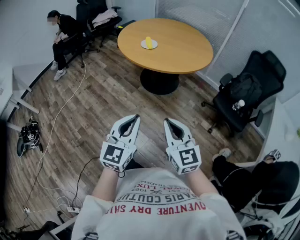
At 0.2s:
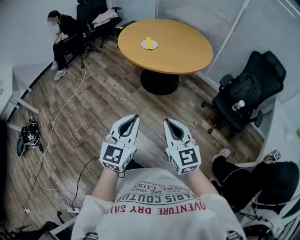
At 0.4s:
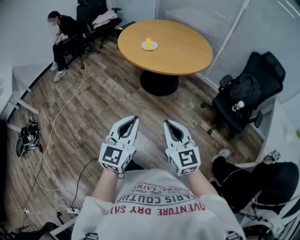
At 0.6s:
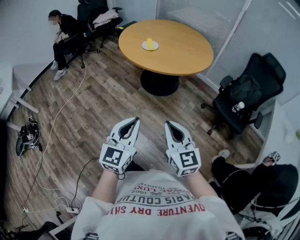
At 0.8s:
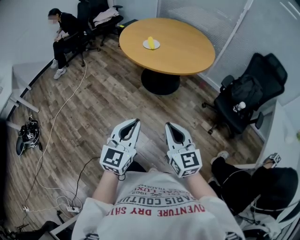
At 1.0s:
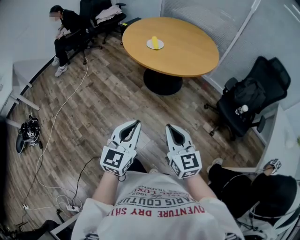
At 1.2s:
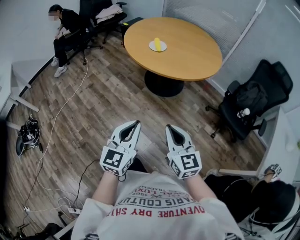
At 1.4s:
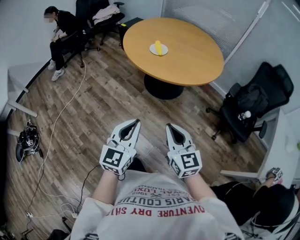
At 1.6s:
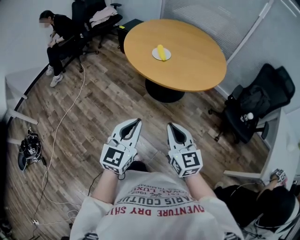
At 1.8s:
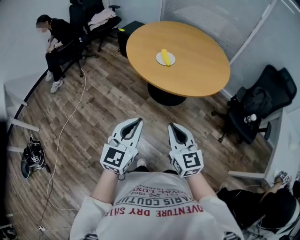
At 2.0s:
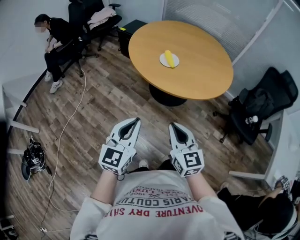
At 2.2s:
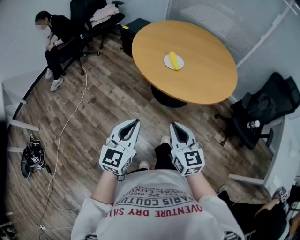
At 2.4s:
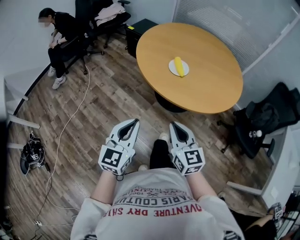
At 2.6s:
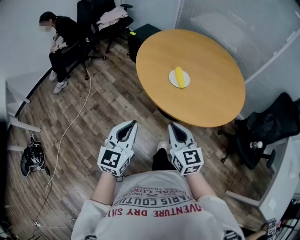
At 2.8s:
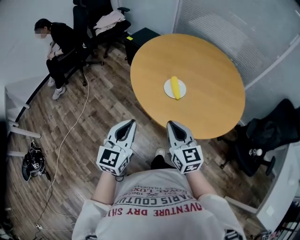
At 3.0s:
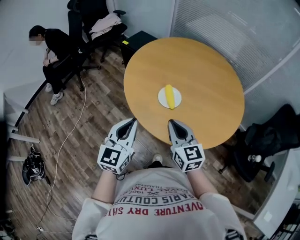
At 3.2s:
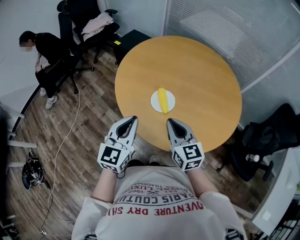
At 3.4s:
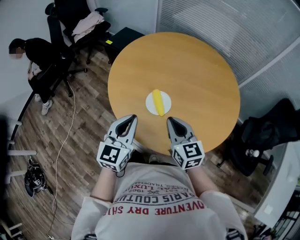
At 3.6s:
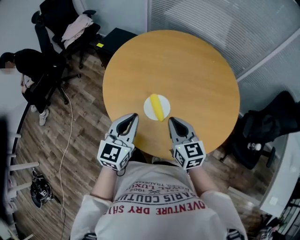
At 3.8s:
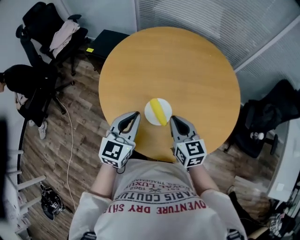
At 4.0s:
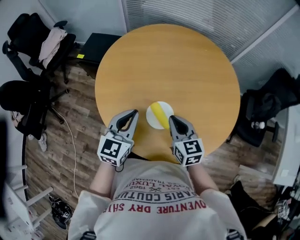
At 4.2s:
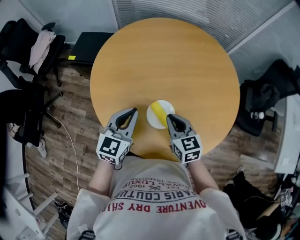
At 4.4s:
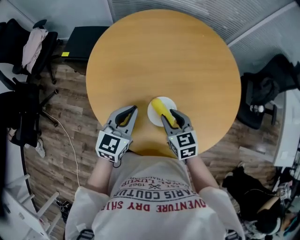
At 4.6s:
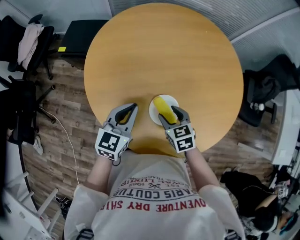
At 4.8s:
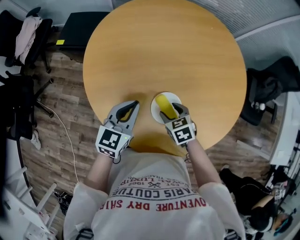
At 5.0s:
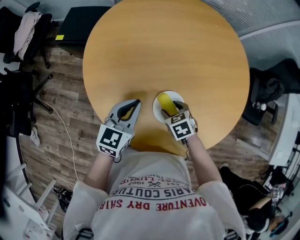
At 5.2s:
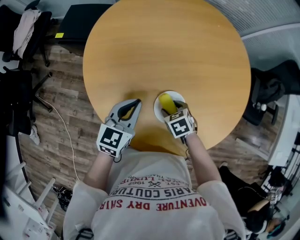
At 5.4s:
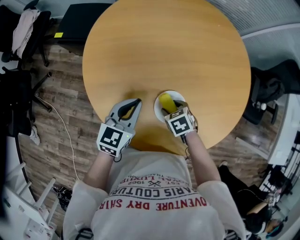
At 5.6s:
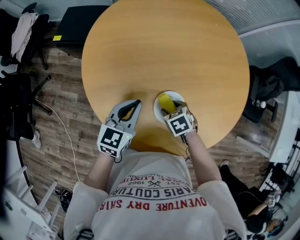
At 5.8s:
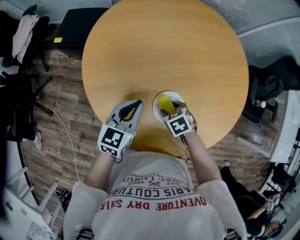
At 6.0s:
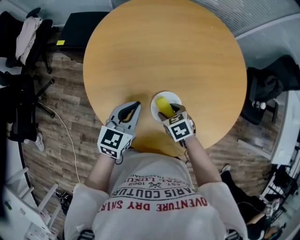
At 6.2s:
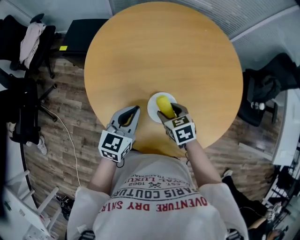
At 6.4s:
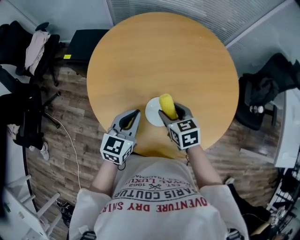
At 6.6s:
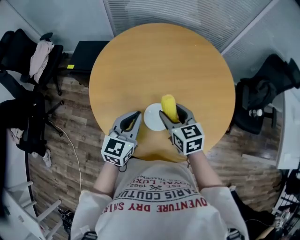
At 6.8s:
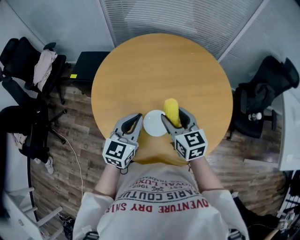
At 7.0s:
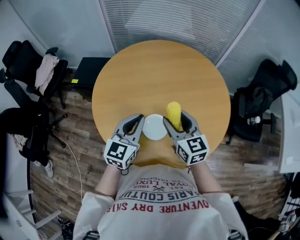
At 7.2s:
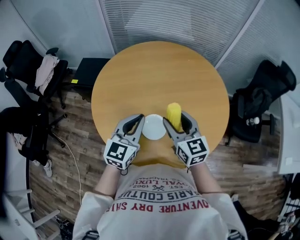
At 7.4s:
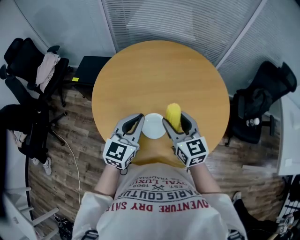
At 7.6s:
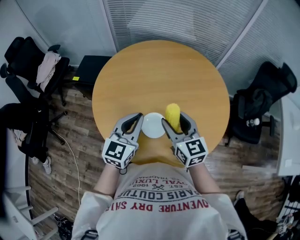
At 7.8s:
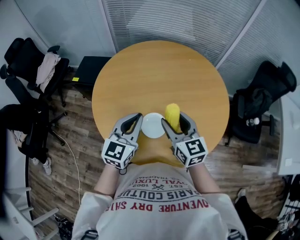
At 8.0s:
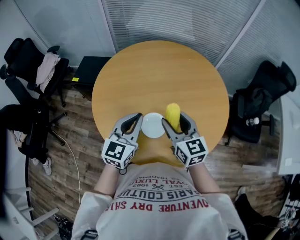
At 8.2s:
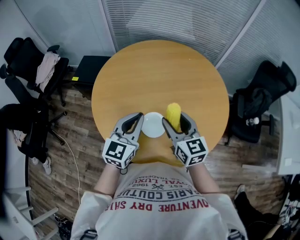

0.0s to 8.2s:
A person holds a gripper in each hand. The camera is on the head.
0.0s to 1.6s: Both grippers travel together forward and to the left, roughly 20 cm.
1.6s to 3.2s: The pair of grippers is taken forward, roughly 40 cm.
3.2s to 5.0s: The left gripper ends up roughly 30 cm from where it was, and turns by some 40 degrees, while the right gripper heads downward, covering roughly 25 cm, angles its fingers downward, by some 50 degrees, and opens up.
5.0s to 6.6s: The right gripper heads upward, covering roughly 20 cm, and tilts its fingers about 40 degrees upward; the left gripper shifts some 10 cm upward.
6.6s to 8.2s: Both grippers travel together upward, approximately 5 cm.

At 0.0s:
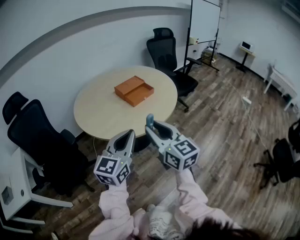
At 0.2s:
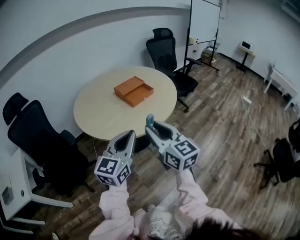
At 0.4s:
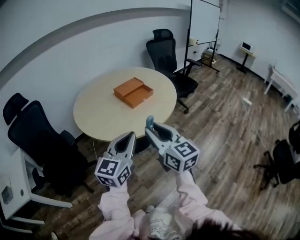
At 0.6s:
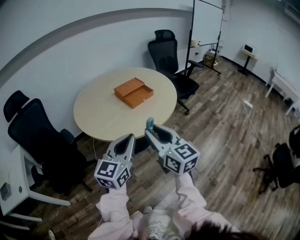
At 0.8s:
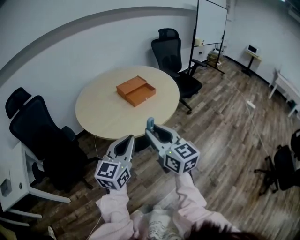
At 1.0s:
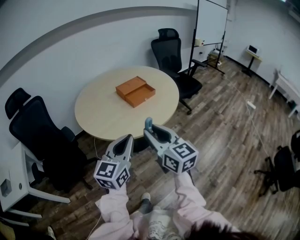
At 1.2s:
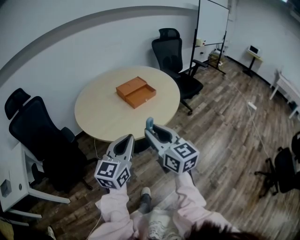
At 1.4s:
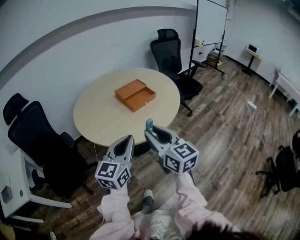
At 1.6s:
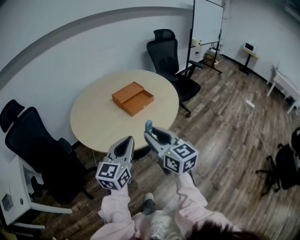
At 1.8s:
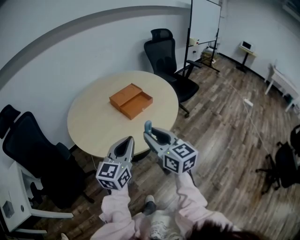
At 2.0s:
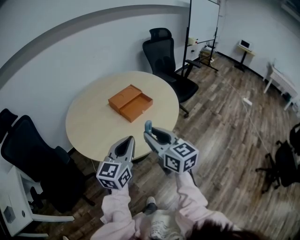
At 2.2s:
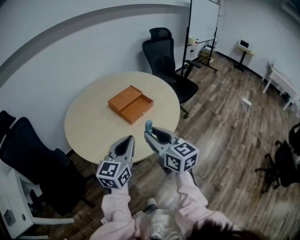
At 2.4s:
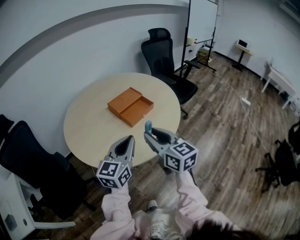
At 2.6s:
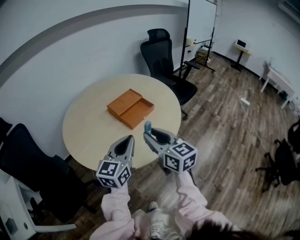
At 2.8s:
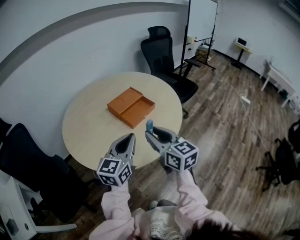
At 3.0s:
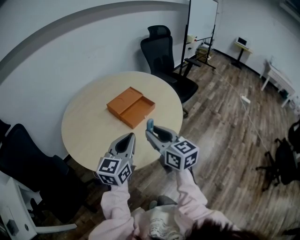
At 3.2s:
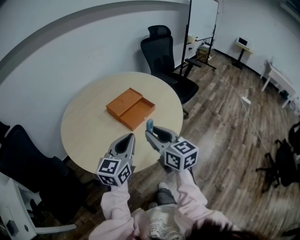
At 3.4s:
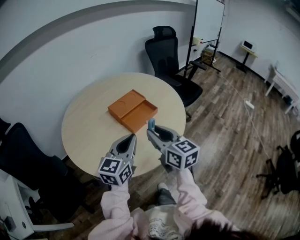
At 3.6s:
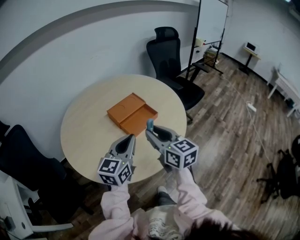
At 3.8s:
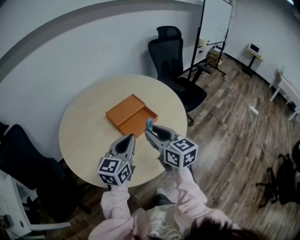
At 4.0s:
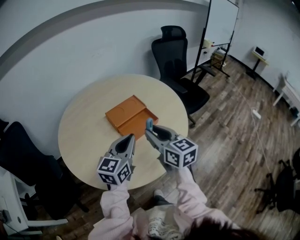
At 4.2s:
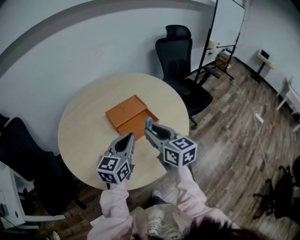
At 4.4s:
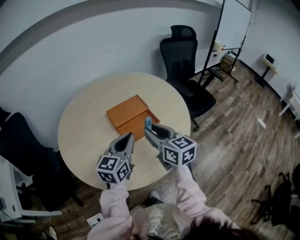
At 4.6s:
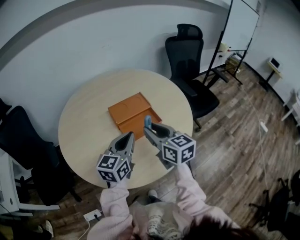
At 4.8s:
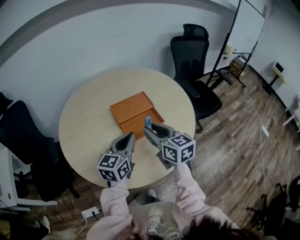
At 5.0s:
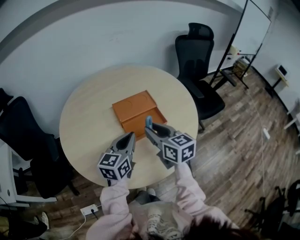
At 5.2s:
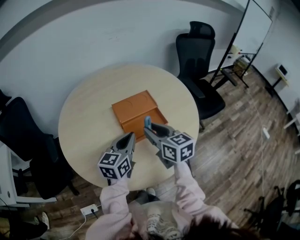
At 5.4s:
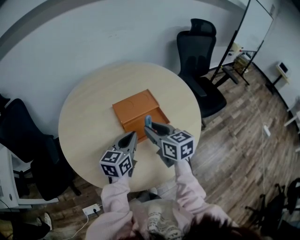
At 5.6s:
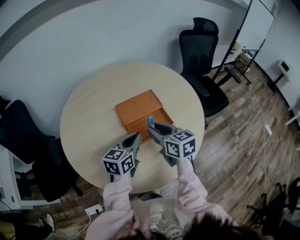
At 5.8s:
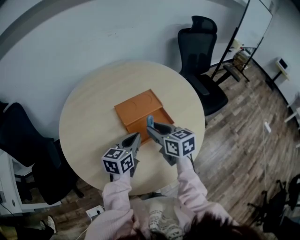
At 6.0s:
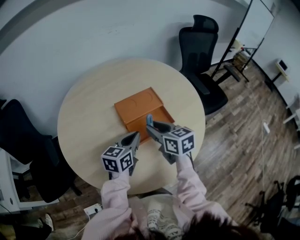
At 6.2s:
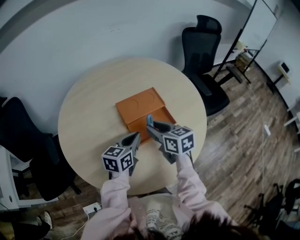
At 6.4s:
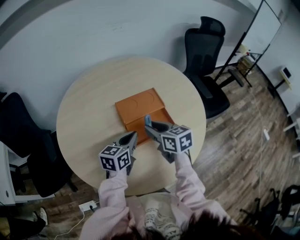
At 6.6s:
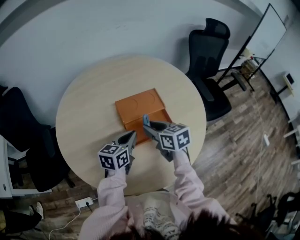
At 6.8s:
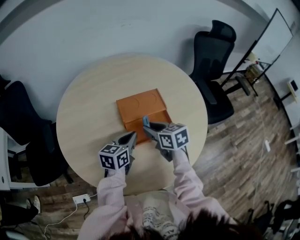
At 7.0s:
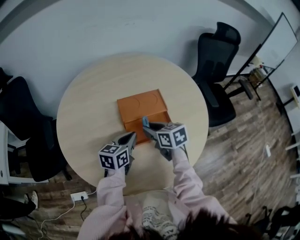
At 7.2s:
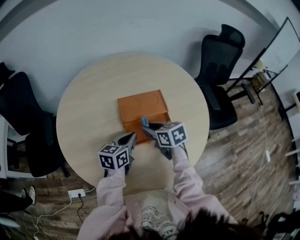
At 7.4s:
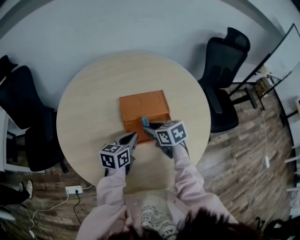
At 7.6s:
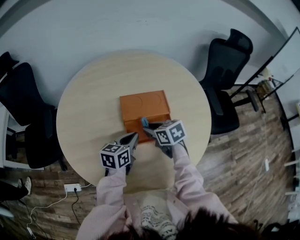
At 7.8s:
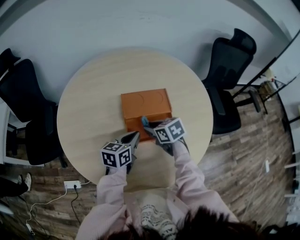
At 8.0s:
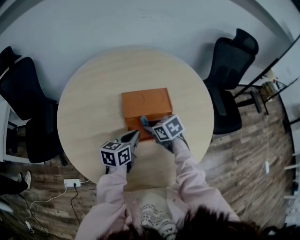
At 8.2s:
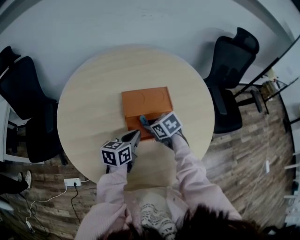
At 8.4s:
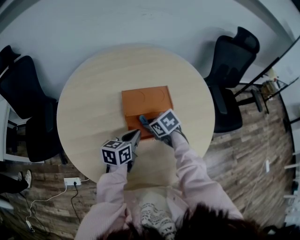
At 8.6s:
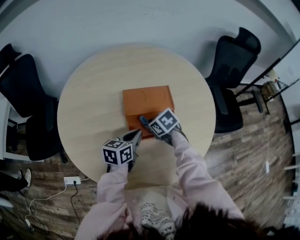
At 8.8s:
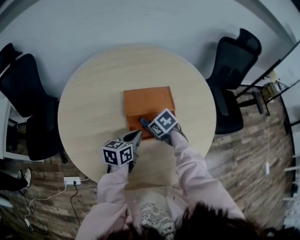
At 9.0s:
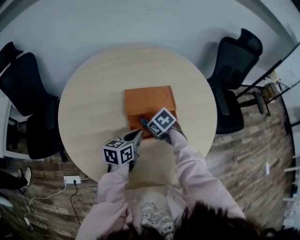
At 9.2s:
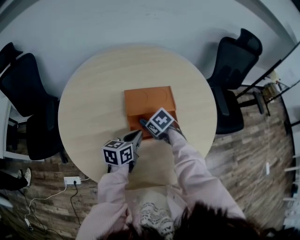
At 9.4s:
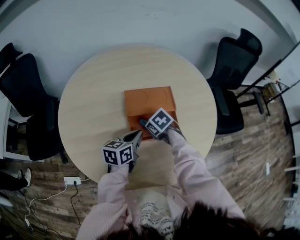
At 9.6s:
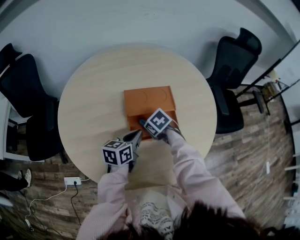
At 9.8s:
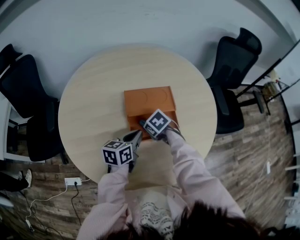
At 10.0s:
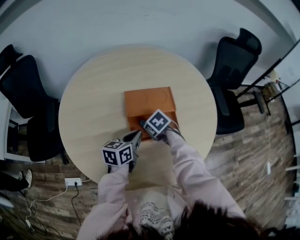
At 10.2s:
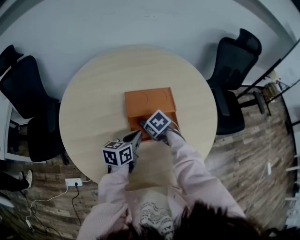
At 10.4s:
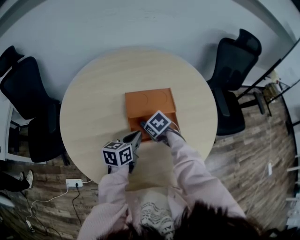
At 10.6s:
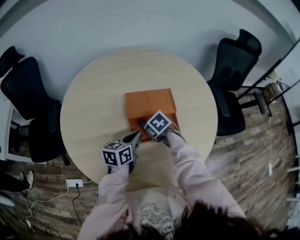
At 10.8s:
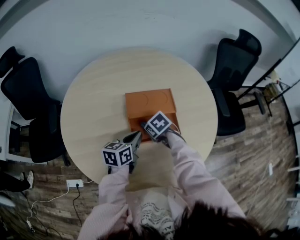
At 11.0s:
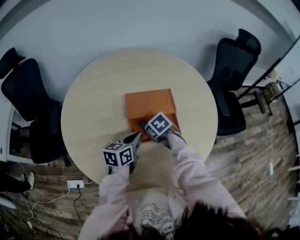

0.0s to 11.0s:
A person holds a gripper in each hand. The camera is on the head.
0.0s to 1.6s: Both grippers travel together forward, some 10 cm.
1.6s to 3.2s: The two grippers go approximately 15 cm forward.
3.2s to 4.8s: The grippers both shift forward by roughly 15 cm. The right gripper turns by about 20 degrees.
4.8s to 6.2s: The left gripper is displaced downward and forward by about 10 cm; the right gripper moves forward and downward, some 10 cm.
6.2s to 7.8s: The left gripper shifts some 5 cm downward. Meanwhile the right gripper heads downward, covering approximately 10 cm, and swivels roughly 30 degrees.
7.8s to 9.4s: The right gripper is displaced downward by some 5 cm, and swivels about 30 degrees.
9.4s to 11.0s: The grippers make only small movements.

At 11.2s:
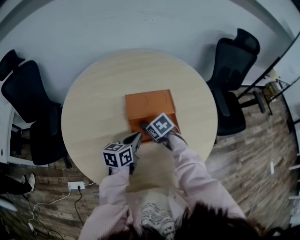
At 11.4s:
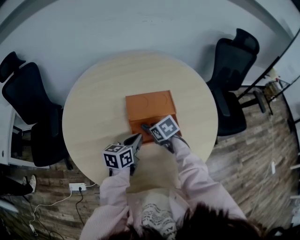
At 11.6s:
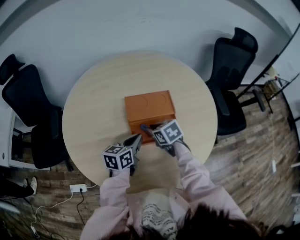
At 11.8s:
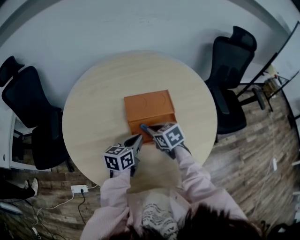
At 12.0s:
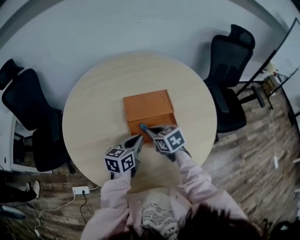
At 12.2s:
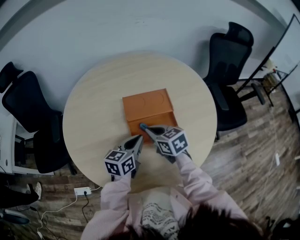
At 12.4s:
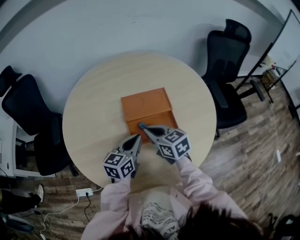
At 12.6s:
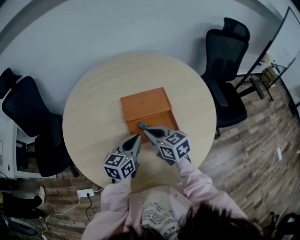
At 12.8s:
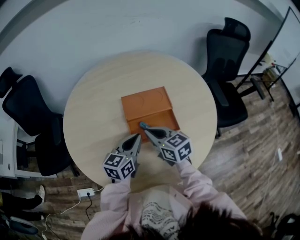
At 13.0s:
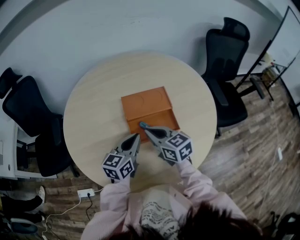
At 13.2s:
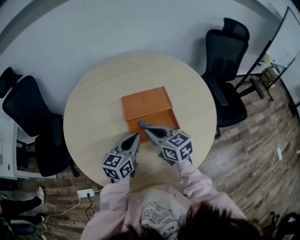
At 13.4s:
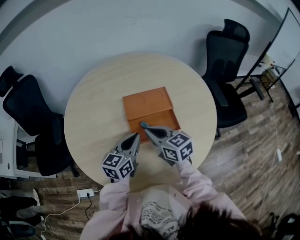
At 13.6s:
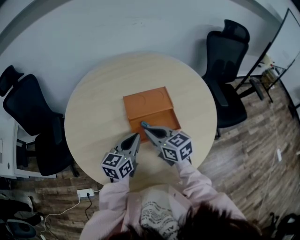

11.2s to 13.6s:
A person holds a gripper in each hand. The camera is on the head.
11.2s to 12.4s: The right gripper heads upward and backward, covering some 15 cm, tilts its fingers roughly 40 degrees upward, and closes up.
12.4s to 13.6s: The grippers make only small movements.

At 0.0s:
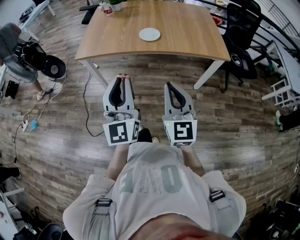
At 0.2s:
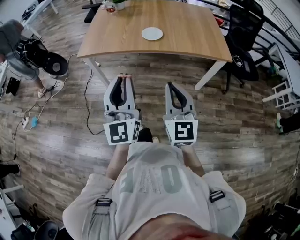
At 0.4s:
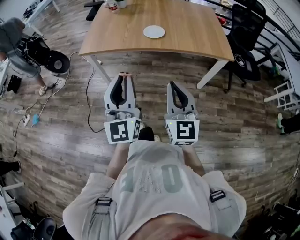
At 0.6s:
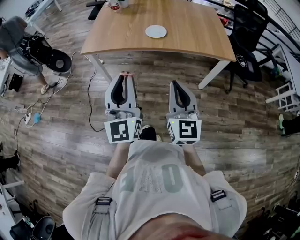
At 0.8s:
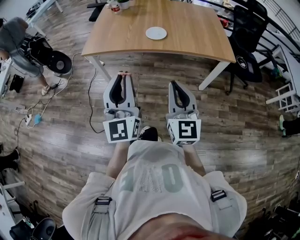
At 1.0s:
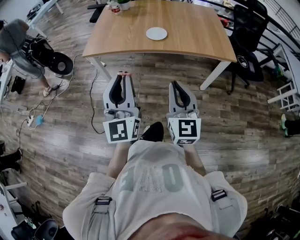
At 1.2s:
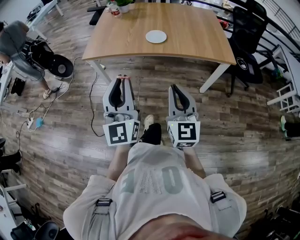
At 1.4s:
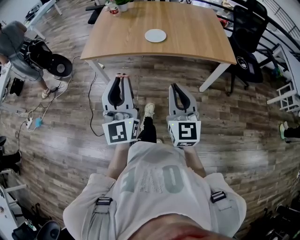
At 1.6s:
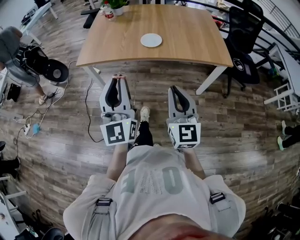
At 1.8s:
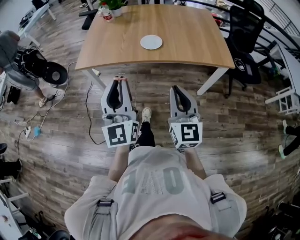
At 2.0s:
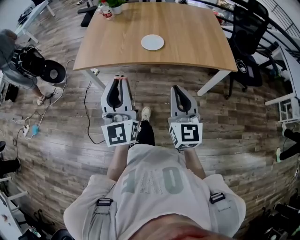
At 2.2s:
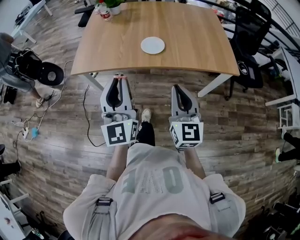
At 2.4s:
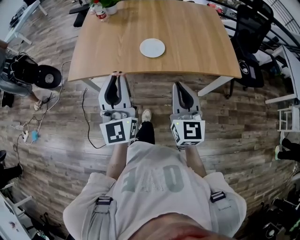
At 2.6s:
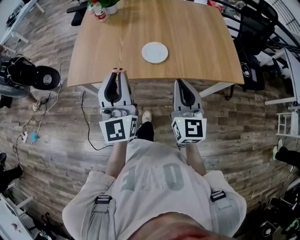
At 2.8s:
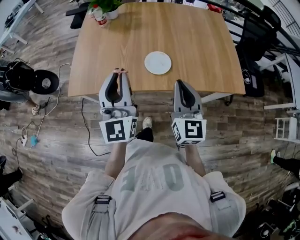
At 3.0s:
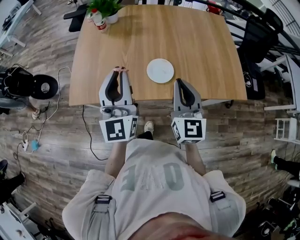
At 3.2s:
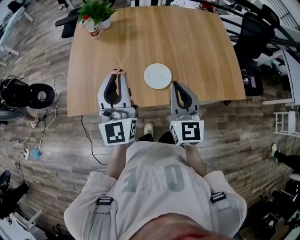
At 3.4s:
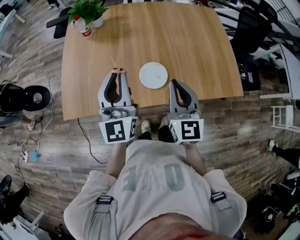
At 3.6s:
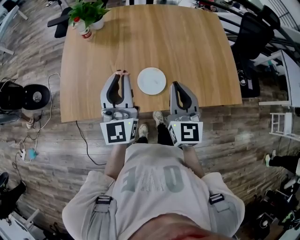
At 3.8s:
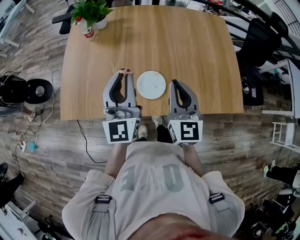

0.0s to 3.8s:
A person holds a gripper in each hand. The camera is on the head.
0.0s to 1.2s: The grippers move only a little.
1.2s to 2.6s: The two grippers go approximately 30 cm forward.
2.6s to 3.8s: Both grippers travel together forward, roughly 25 cm.
